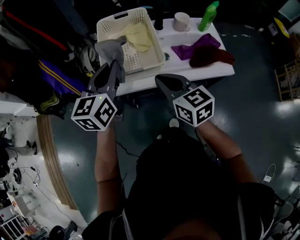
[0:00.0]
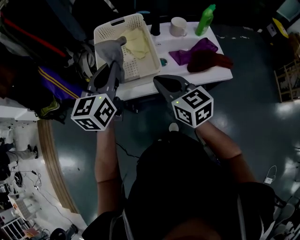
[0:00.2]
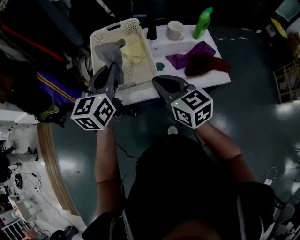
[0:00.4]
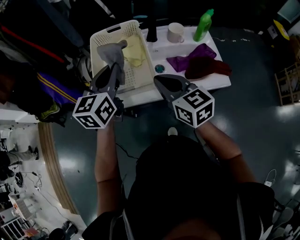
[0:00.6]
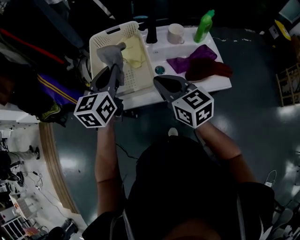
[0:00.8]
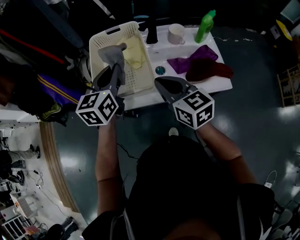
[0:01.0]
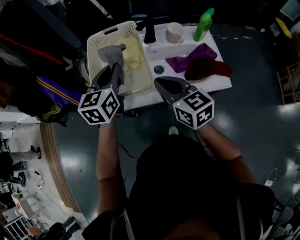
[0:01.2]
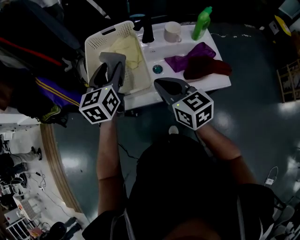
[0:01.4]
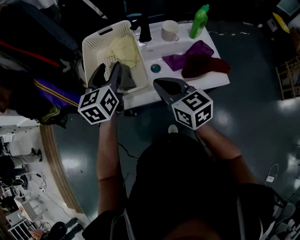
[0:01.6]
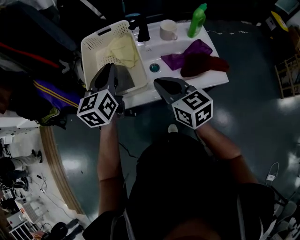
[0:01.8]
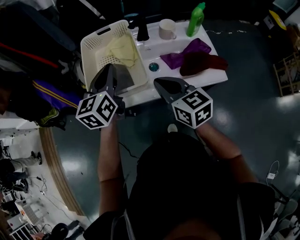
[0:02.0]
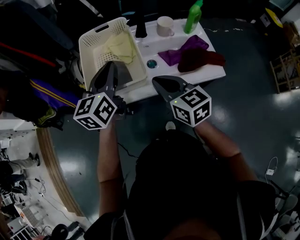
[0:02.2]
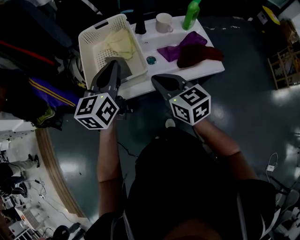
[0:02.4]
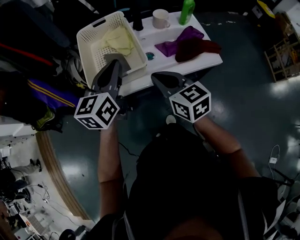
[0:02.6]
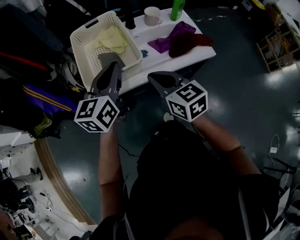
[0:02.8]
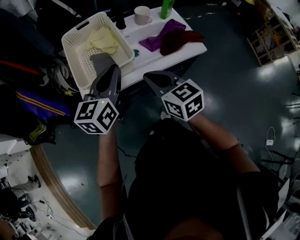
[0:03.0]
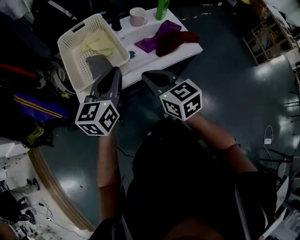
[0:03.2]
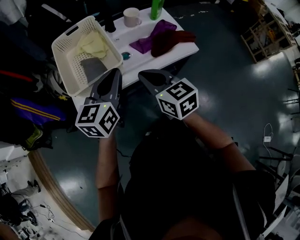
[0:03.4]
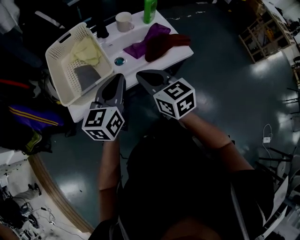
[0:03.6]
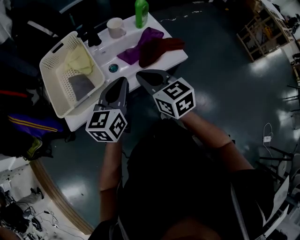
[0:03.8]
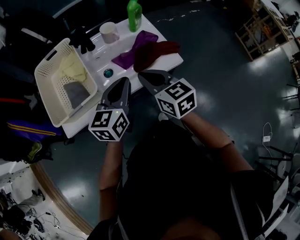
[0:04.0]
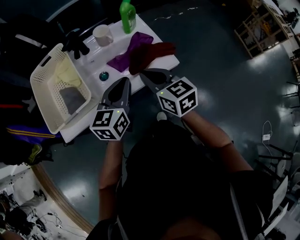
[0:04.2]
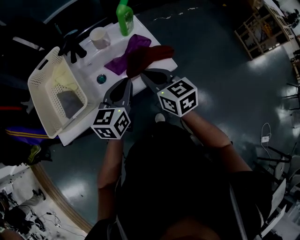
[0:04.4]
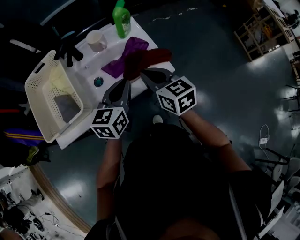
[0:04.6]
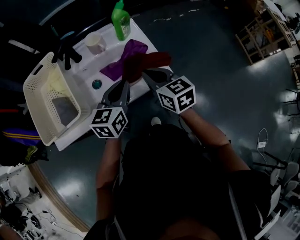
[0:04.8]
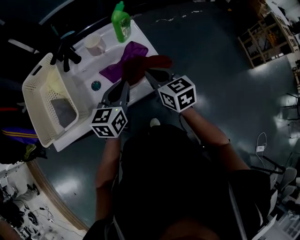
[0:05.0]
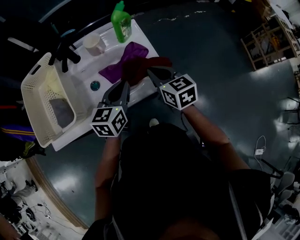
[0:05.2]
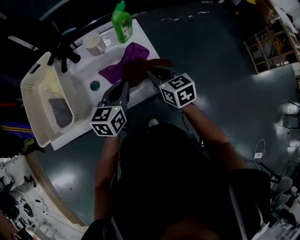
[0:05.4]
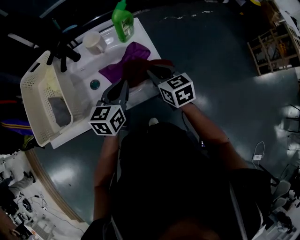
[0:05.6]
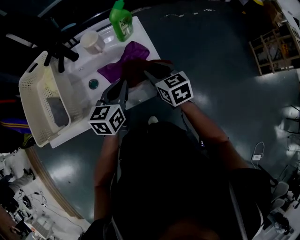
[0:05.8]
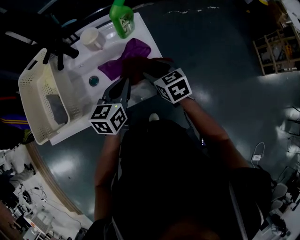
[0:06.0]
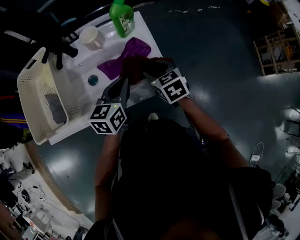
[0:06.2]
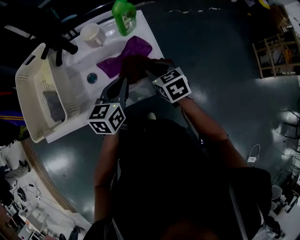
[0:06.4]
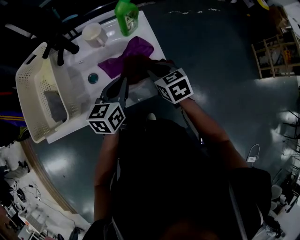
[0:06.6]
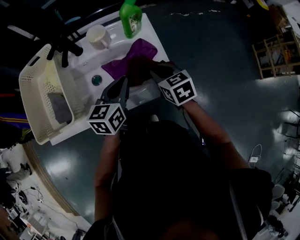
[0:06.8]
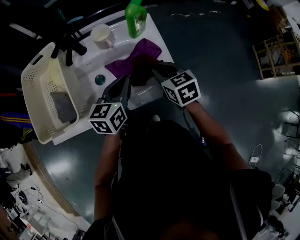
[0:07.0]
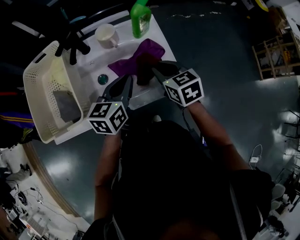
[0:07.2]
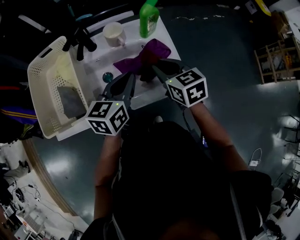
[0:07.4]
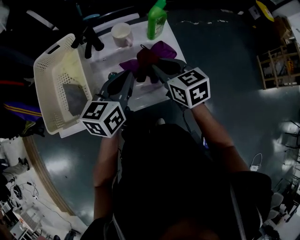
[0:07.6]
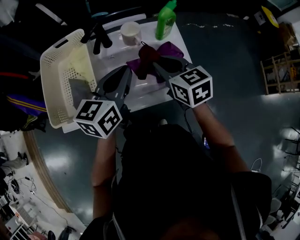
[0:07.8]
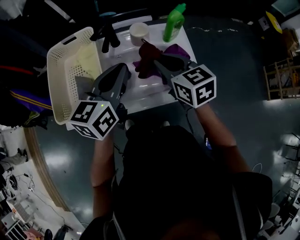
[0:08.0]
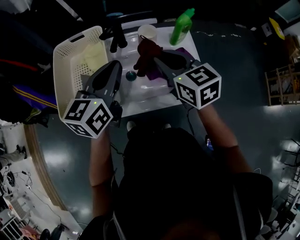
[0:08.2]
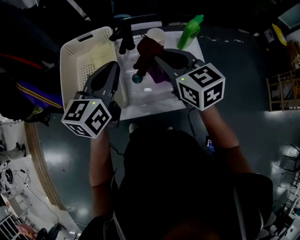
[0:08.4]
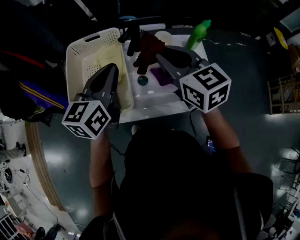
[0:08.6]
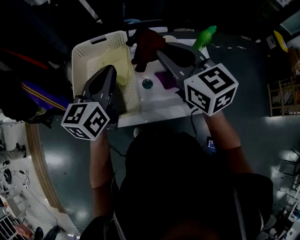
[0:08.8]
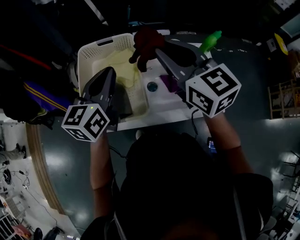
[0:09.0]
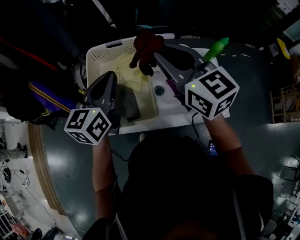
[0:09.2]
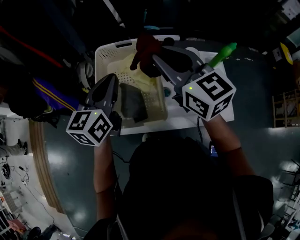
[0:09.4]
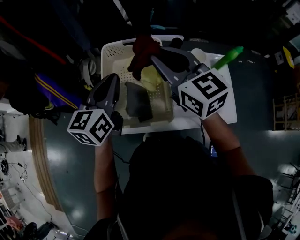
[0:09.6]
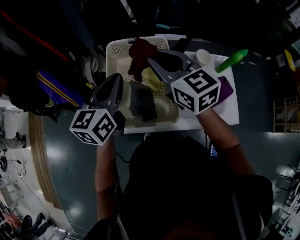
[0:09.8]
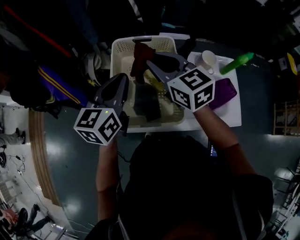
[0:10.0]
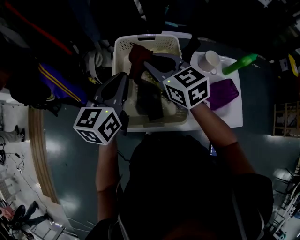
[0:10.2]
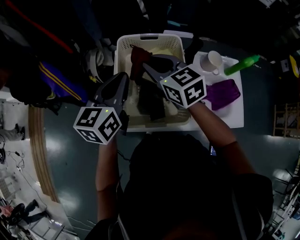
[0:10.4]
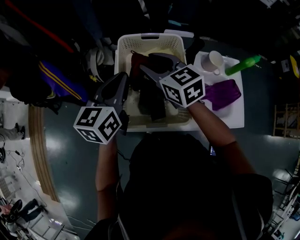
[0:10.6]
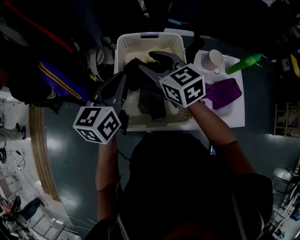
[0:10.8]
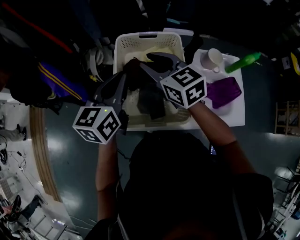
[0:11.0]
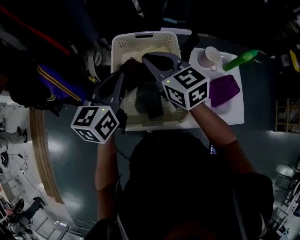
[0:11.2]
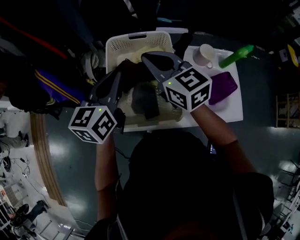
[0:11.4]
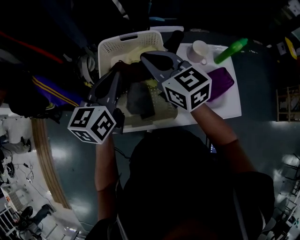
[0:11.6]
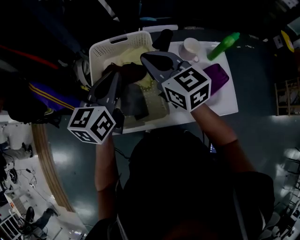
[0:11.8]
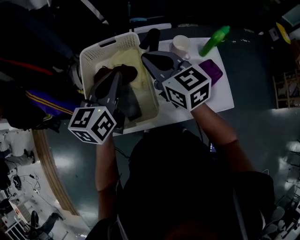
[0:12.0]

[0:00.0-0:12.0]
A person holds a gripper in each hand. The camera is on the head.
0:00.0 to 0:01.6: The right gripper travels to the right by about 10 cm. Meanwhile the left gripper heads forward and to the right, covering approximately 10 cm, and opens up.
0:01.6 to 0:03.0: The two grippers go some 10 cm backward. The left gripper turns by roughly 30 degrees, and closes.
0:03.0 to 0:04.4: The left gripper heads to the right, covering some 25 cm; the right gripper moves to the right and forward, some 25 cm.
0:04.4 to 0:06.0: The left gripper goes about 15 cm forward, downward and to the right, while the right gripper is displaced downward, forward and to the right by some 20 cm, rotates about 20 degrees, and opens its fingers.
0:06.0 to 0:07.6: The two grippers go about 15 cm upward and to the left. The right gripper closes.
0:07.6 to 0:09.0: The right gripper moves to the left and upward, about 30 cm, and swivels some 30 degrees. Meanwhile the left gripper moves to the left, approximately 25 cm.
0:09.0 to 0:10.4: The left gripper shifts approximately 15 cm to the left. The right gripper shifts approximately 25 cm to the left, downward and forward.
0:10.4 to 0:12.0: Both grippers travel together to the right, roughly 15 cm. The right gripper opens and closes again.

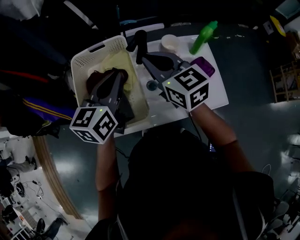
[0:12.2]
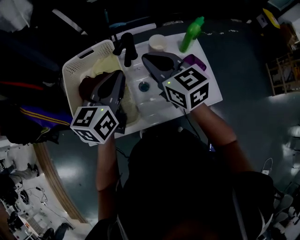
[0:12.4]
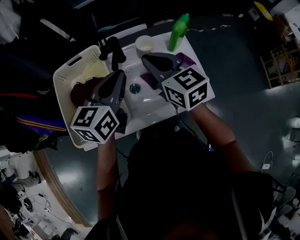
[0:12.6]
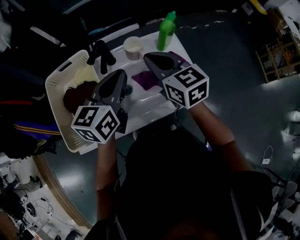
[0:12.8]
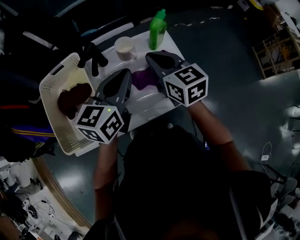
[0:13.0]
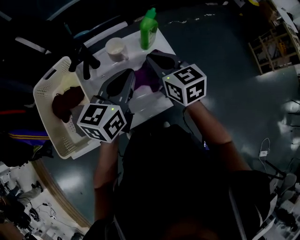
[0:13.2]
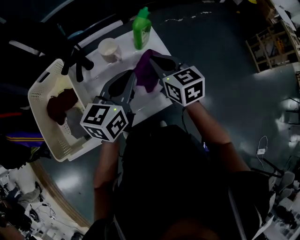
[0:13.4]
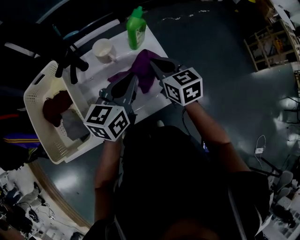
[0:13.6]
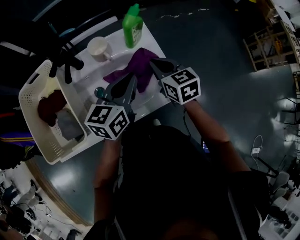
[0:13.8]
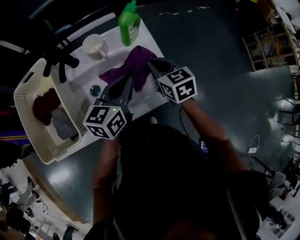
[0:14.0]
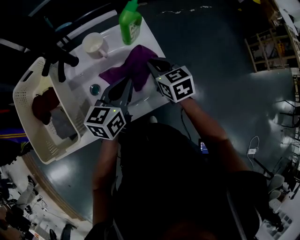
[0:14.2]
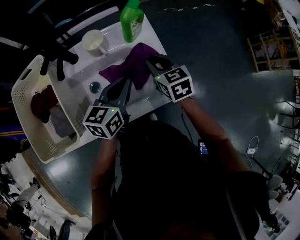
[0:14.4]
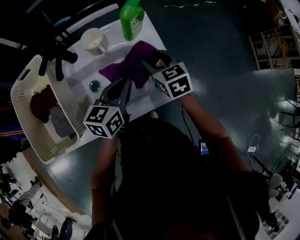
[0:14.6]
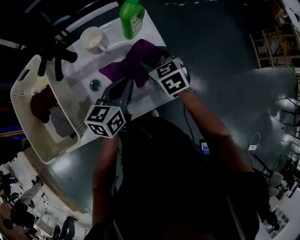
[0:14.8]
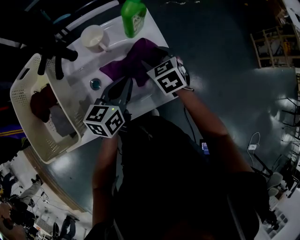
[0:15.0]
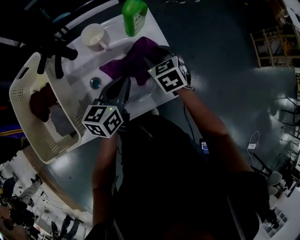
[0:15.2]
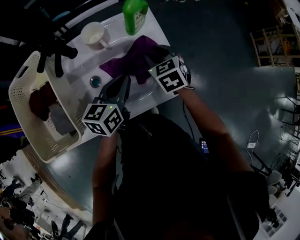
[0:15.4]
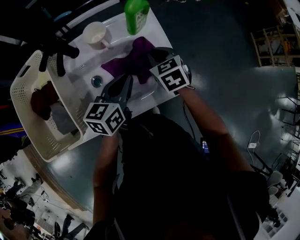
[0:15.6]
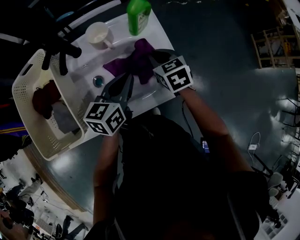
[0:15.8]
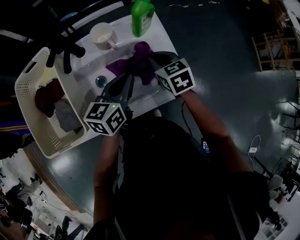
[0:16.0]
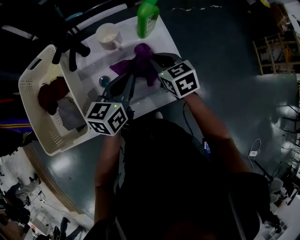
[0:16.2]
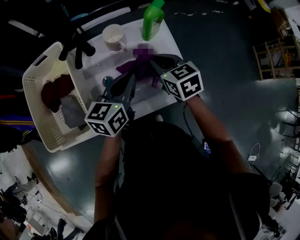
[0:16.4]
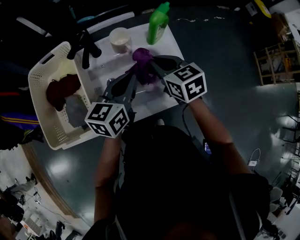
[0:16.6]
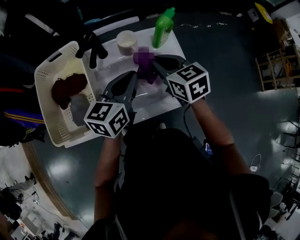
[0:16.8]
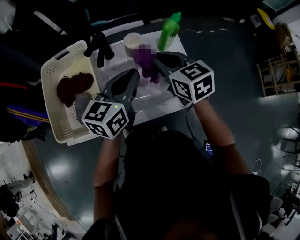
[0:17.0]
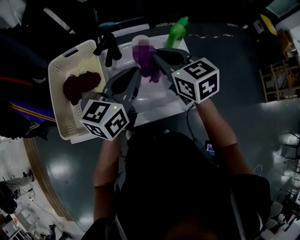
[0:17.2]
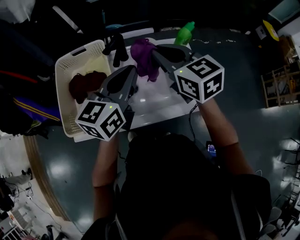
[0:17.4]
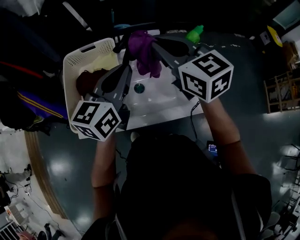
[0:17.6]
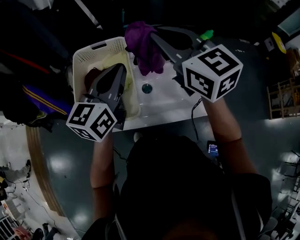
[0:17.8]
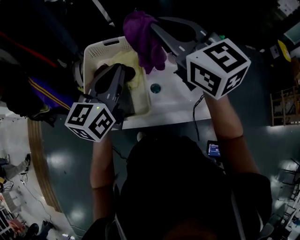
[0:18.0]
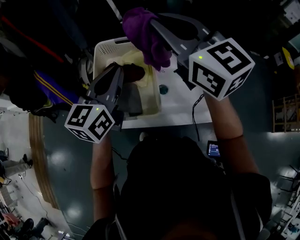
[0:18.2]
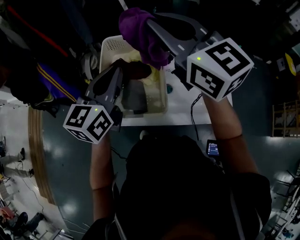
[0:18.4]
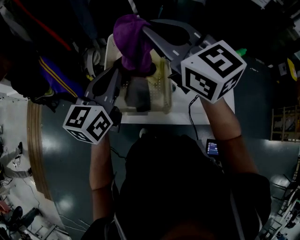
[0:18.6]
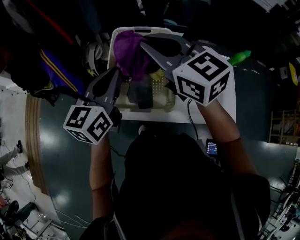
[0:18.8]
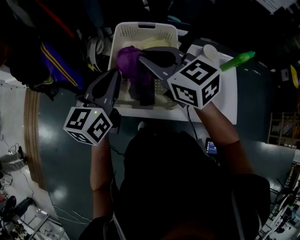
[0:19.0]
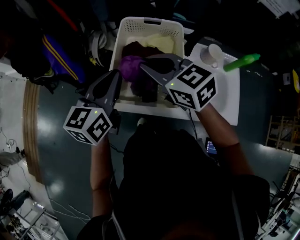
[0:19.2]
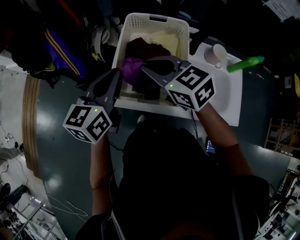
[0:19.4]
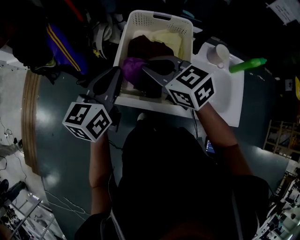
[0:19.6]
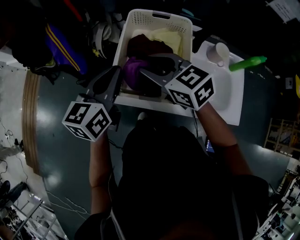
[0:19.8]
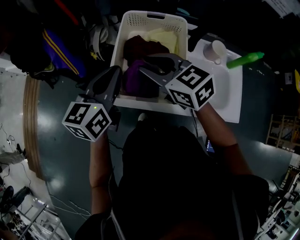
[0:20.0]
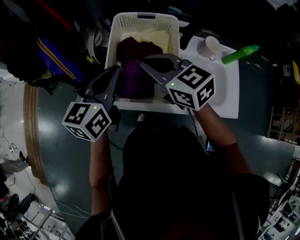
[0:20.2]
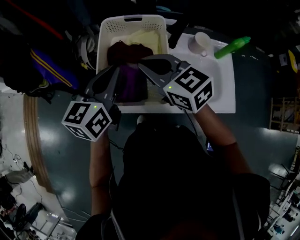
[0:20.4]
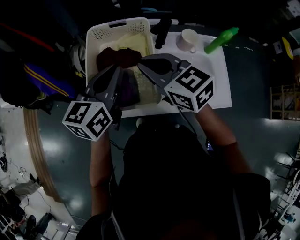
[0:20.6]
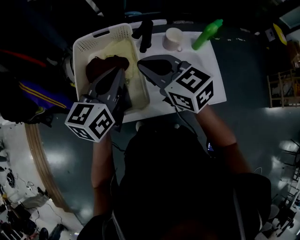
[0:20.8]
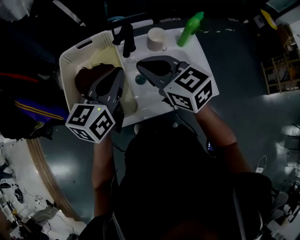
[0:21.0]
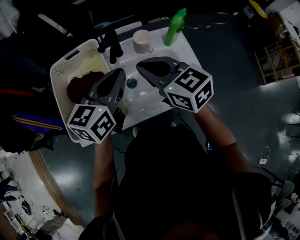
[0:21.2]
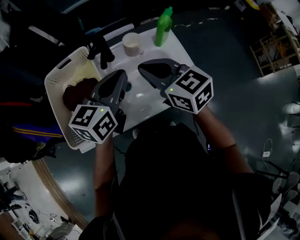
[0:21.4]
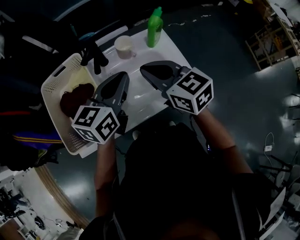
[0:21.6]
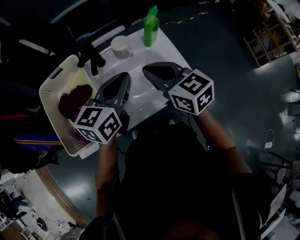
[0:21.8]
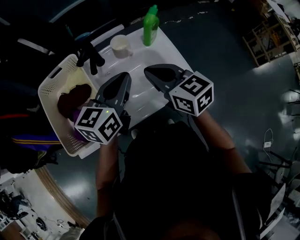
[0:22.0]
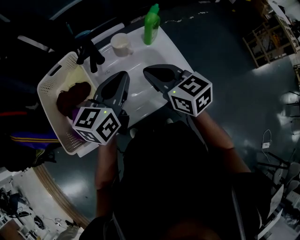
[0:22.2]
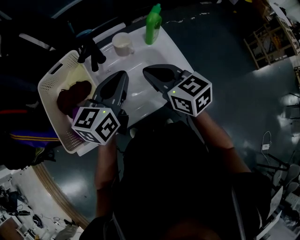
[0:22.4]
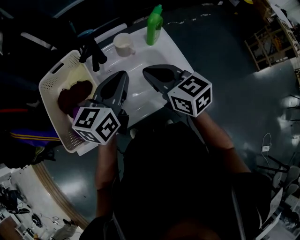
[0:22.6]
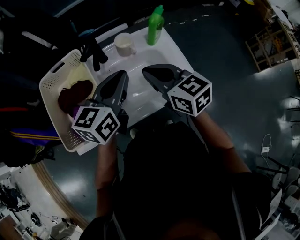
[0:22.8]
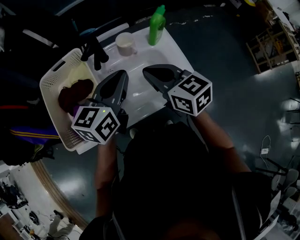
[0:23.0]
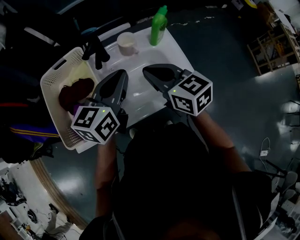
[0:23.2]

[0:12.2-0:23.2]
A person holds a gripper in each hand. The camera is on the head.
0:12.2 to 0:13.8: The right gripper moves to the right and downward, about 35 cm, and rotates some 30 degrees. Meanwhile the left gripper shifts roughly 30 cm to the right.
0:13.8 to 0:15.4: The grippers both shift downward by approximately 10 cm. The right gripper swivels roughly 20 degrees, and opens its fingers.
0:15.4 to 0:17.0: The two grippers go some 20 cm upward and to the left. The right gripper swivels some 30 degrees, and closes.
0:17.0 to 0:18.4: The right gripper travels to the left and upward by approximately 35 cm, and changes its angle by about 30 degrees. Meanwhile the left gripper goes approximately 30 cm to the left, and rotates roughly 20 degrees.
0:18.4 to 0:20.0: The right gripper goes roughly 25 cm downward and to the left, changes its angle by roughly 30 degrees, and opens up. Meanwhile the left gripper goes some 10 cm to the left and downward.
0:20.0 to 0:21.6: The left gripper moves approximately 35 cm, and changes its angle by about 40 degrees. Meanwhile the right gripper shifts by about 30 cm, changes its angle by about 40 degrees, and closes up.
0:21.6 to 0:23.2: The grippers move only a little.
